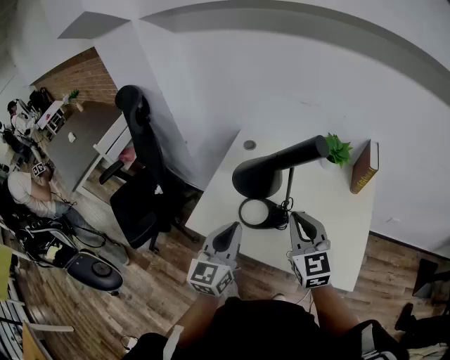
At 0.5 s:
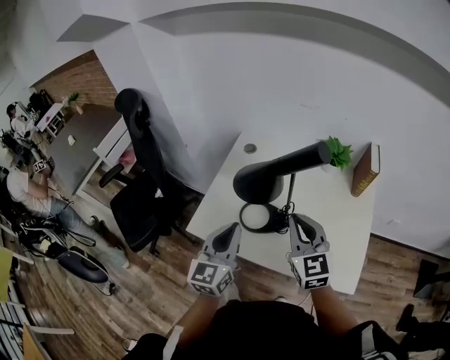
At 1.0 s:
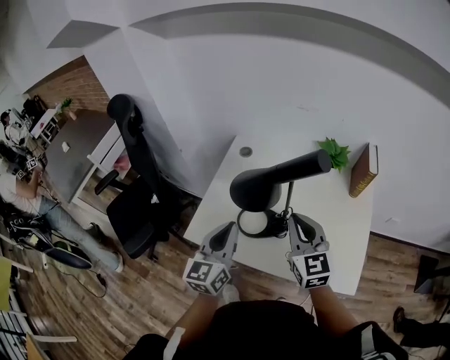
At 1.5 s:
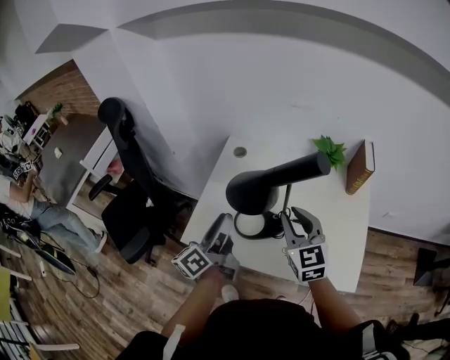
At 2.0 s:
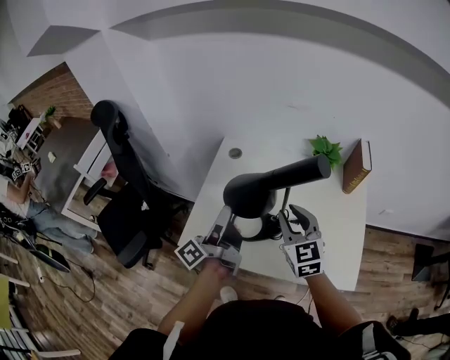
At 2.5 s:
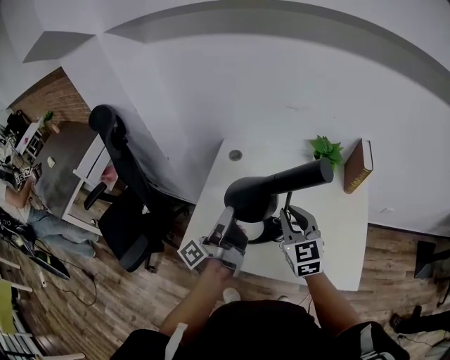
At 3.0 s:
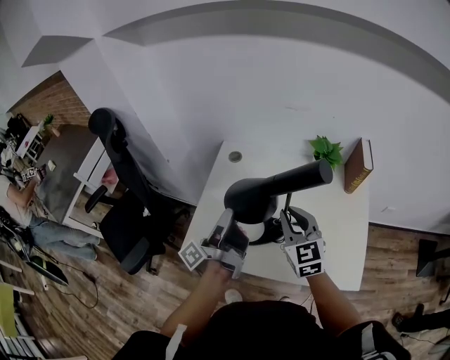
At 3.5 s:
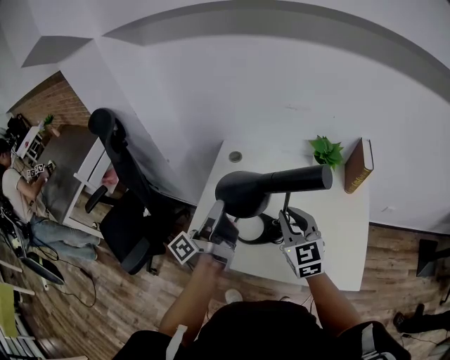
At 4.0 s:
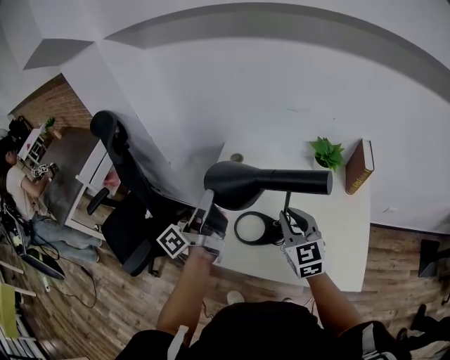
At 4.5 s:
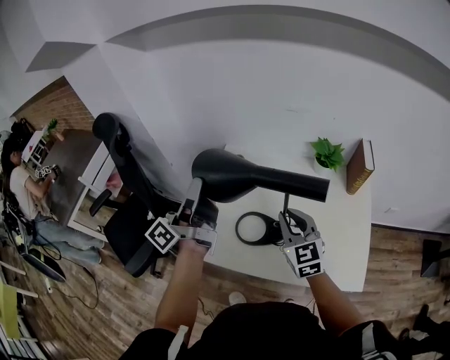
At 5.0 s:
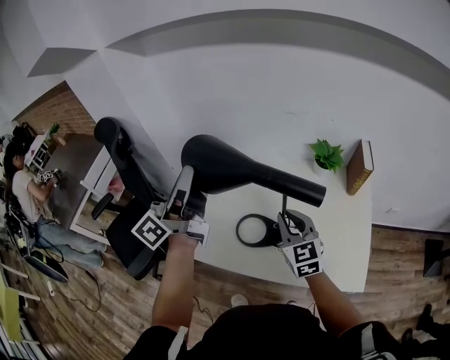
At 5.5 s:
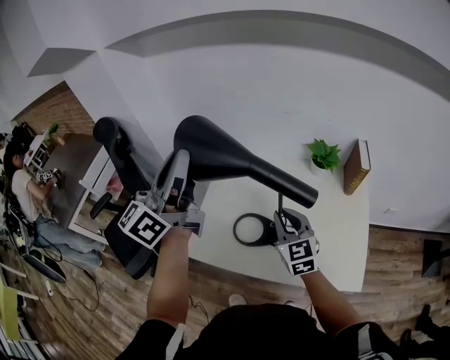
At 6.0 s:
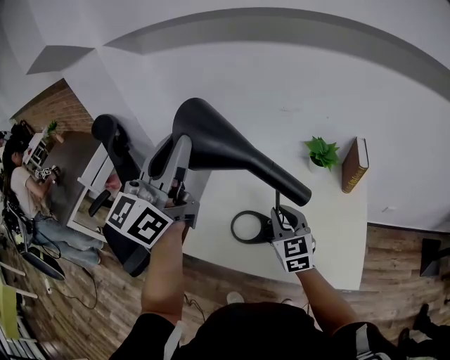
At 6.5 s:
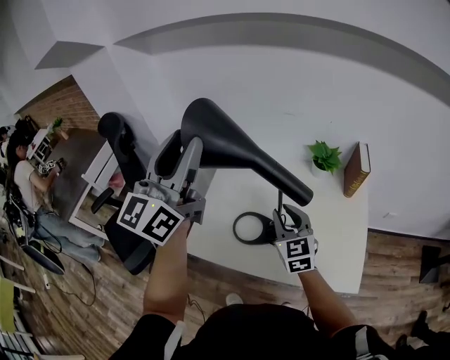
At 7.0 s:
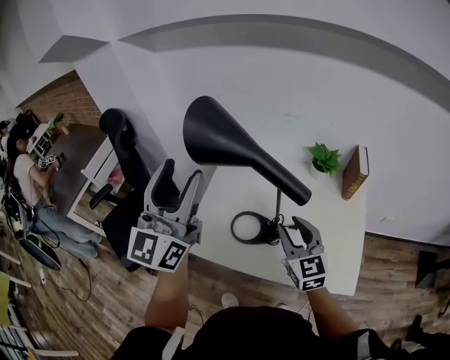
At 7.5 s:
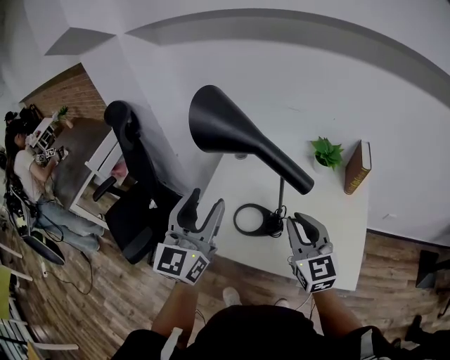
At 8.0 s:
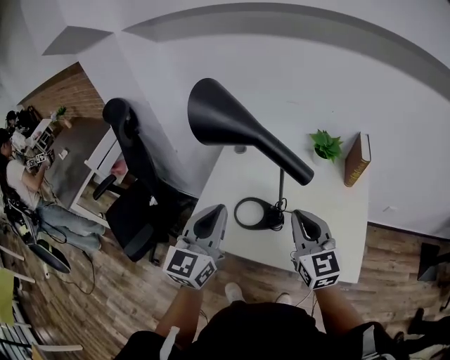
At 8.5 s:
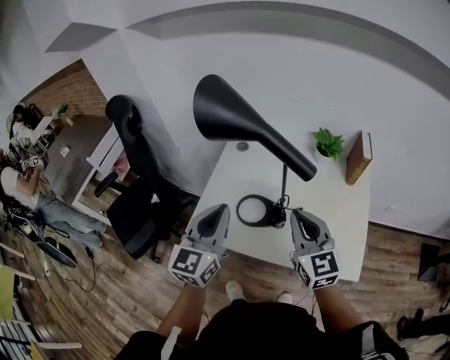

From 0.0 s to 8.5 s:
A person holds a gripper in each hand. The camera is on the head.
From 0.0 s to 2.0 s: The left gripper shifts some 10 cm forward, rolls counterclockwise, seen from behind, by about 70 degrees, and opens, while the right gripper heads forward, covering roughly 5 cm, and opens.
From 2.0 s to 4.0 s: The left gripper shifts approximately 5 cm upward, and closes.
From 4.0 s to 6.5 s: The left gripper is displaced upward by approximately 20 cm, twists about 70 degrees clockwise, seen from behind, and opens.
From 6.5 s to 8.5 s: The right gripper shifts approximately 10 cm backward and upward. The left gripper moves downward and backward, approximately 25 cm, changes its angle by about 20 degrees, and closes its fingers.

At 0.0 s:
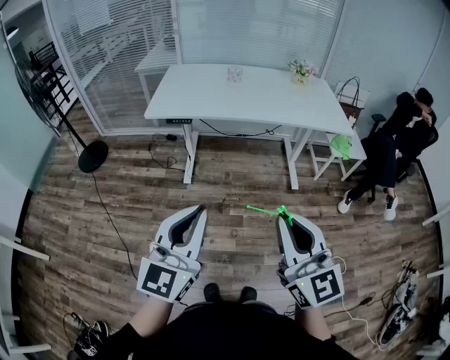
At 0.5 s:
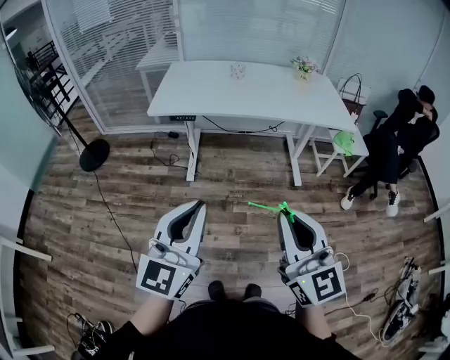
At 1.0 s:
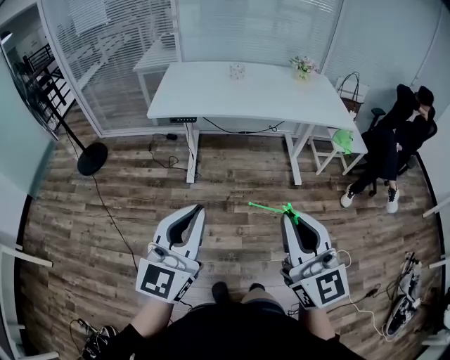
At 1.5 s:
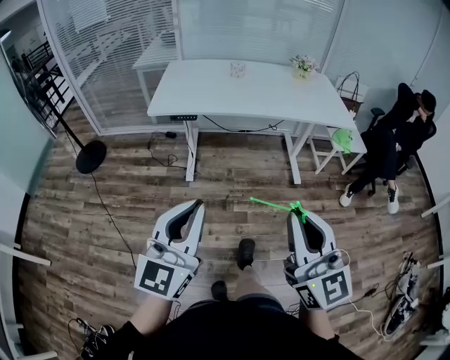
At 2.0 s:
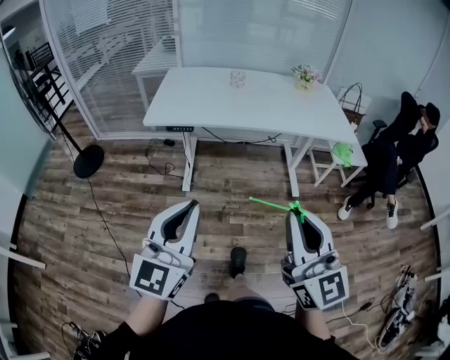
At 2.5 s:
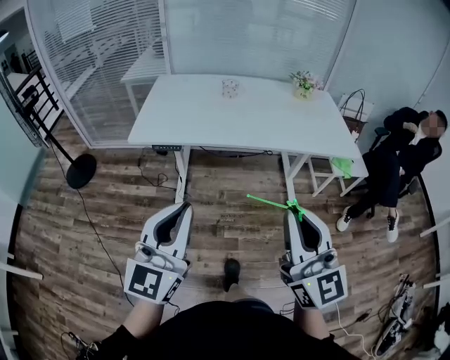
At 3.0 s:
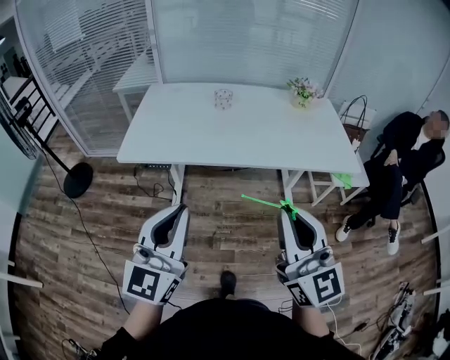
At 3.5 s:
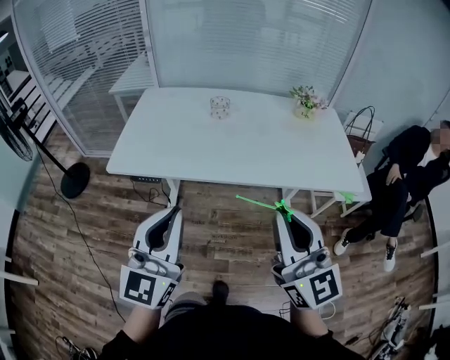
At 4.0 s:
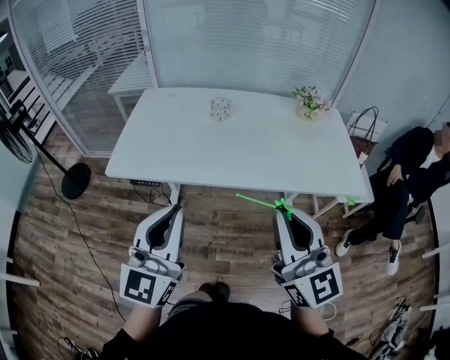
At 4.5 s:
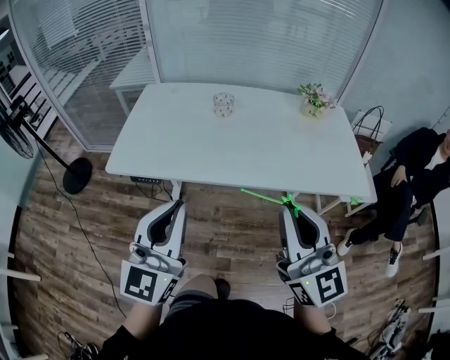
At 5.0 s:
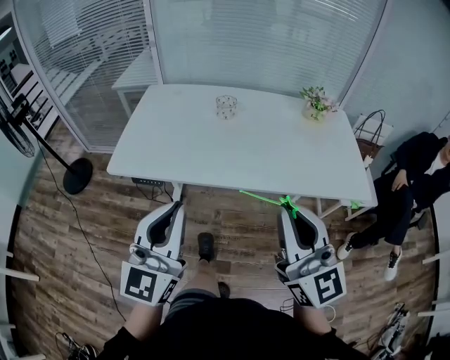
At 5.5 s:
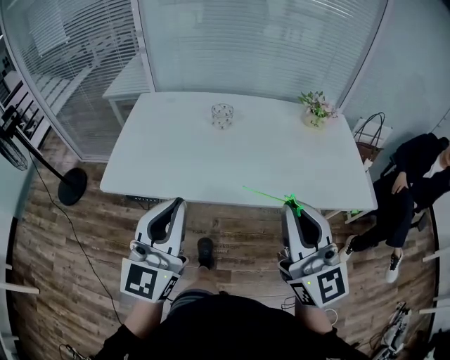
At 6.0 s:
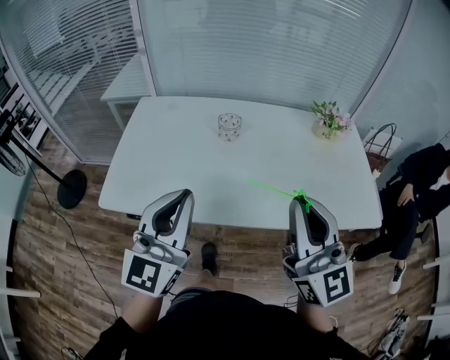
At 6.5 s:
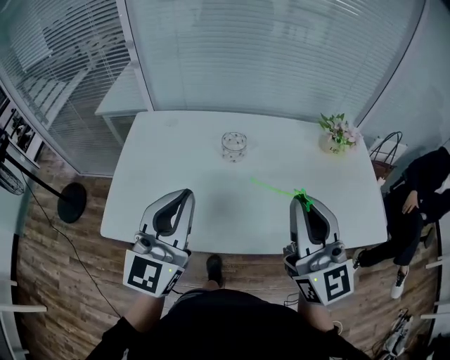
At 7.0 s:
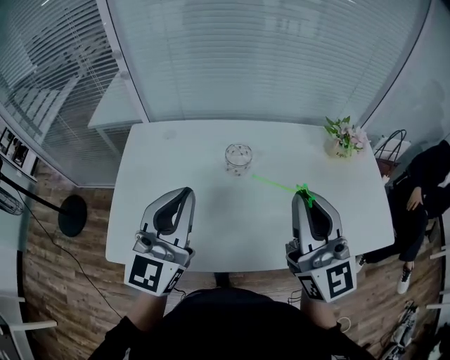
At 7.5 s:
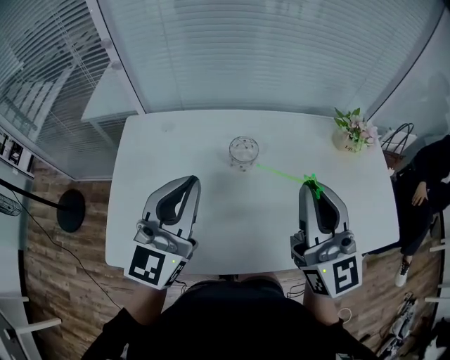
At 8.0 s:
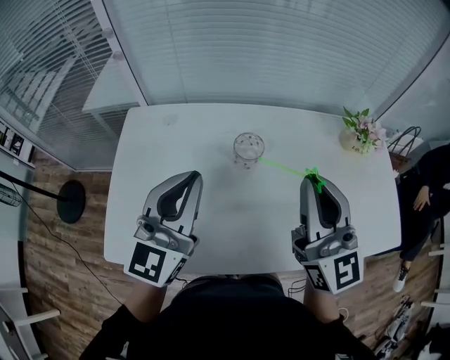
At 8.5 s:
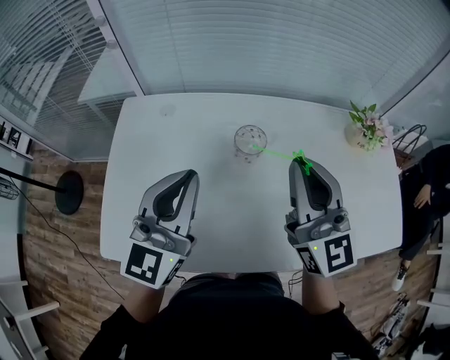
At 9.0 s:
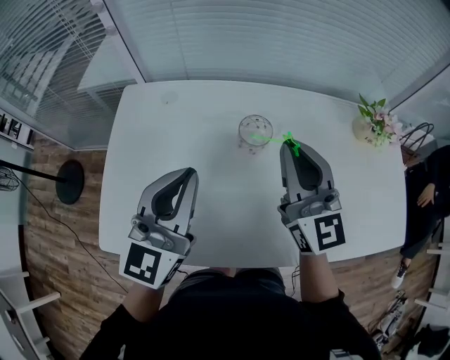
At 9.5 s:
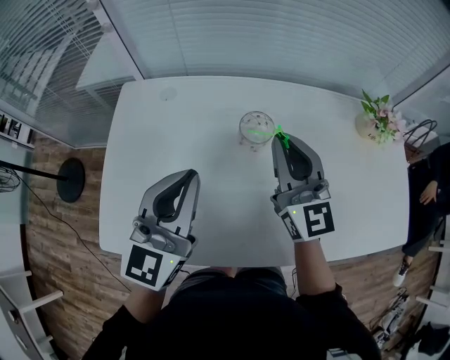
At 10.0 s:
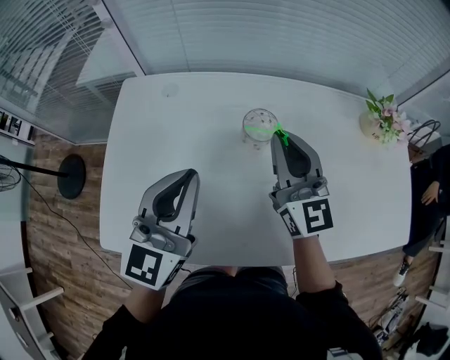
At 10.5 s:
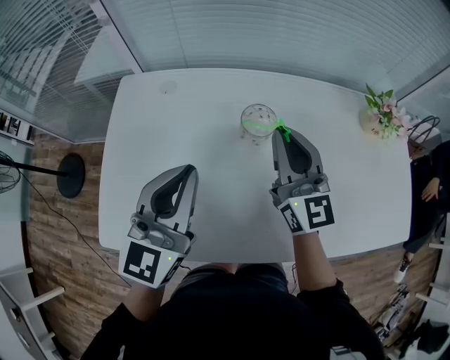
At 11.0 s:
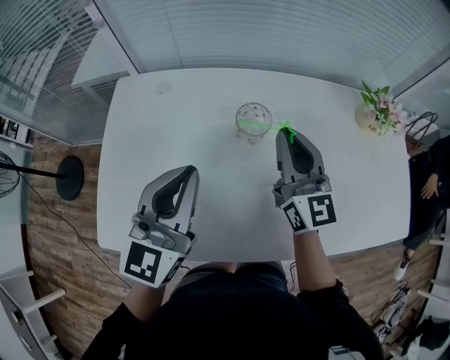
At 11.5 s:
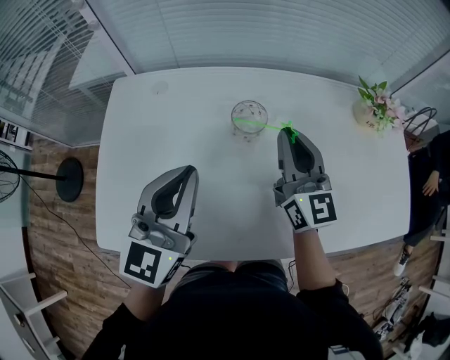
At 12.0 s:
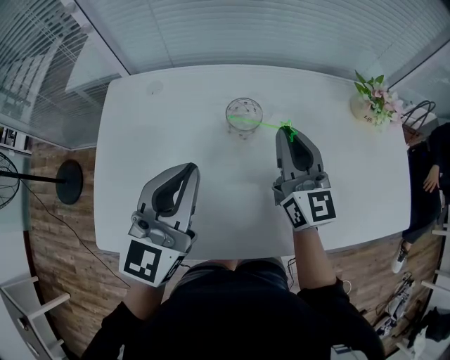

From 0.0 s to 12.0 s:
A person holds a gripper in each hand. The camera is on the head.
From 0.0 s to 2.0 s: The two grippers go about 5 cm forward.
From 2.0 s to 4.0 s: The grippers both shift forward by some 30 cm.
From 4.0 s to 6.0 s: The grippers both shift forward by roughly 15 cm.
From 6.0 s to 8.0 s: Both grippers travel together forward, roughly 20 cm.
From 8.0 s to 10.0 s: The left gripper heads downward, covering about 5 cm. Meanwhile the right gripper is displaced downward, forward and to the left by some 15 cm.
From 10.0 s to 12.0 s: The right gripper goes roughly 5 cm to the right.

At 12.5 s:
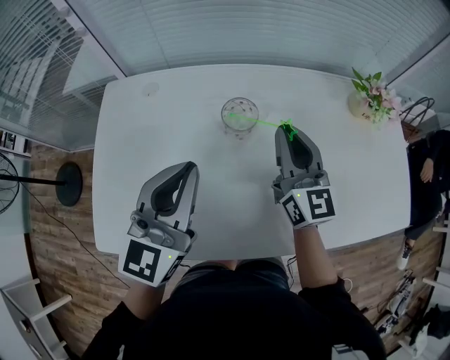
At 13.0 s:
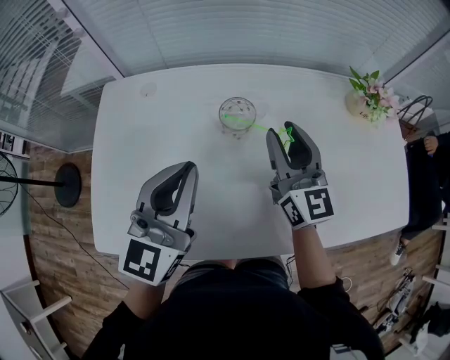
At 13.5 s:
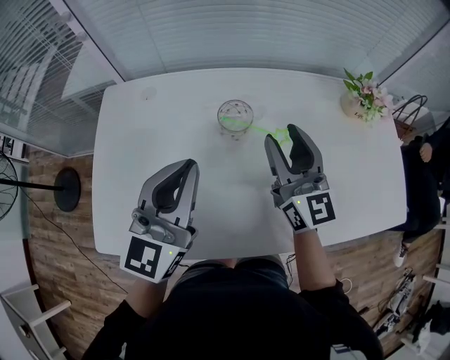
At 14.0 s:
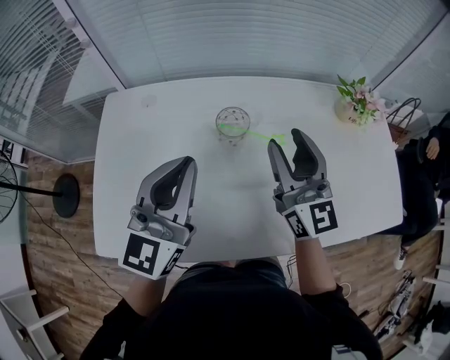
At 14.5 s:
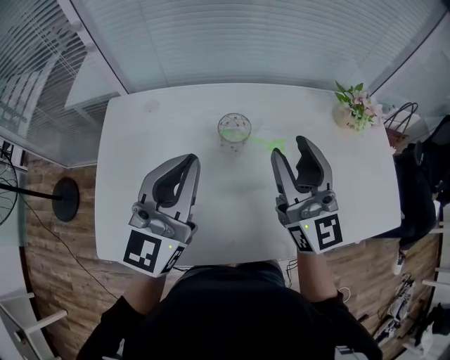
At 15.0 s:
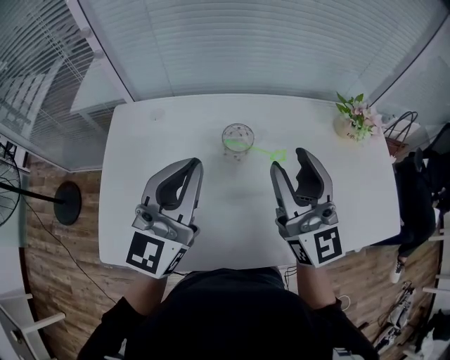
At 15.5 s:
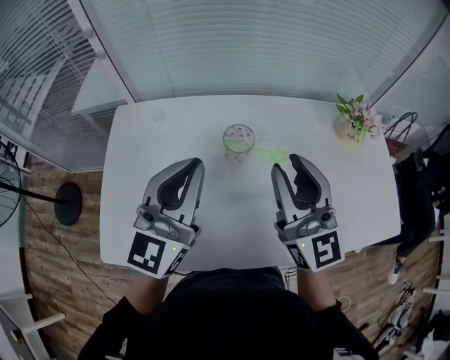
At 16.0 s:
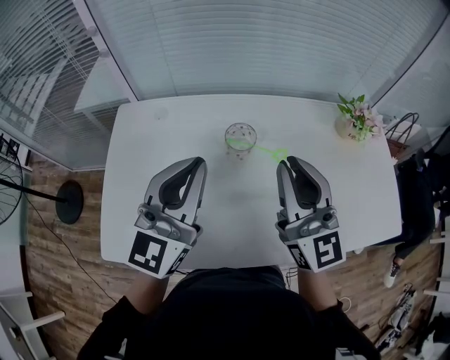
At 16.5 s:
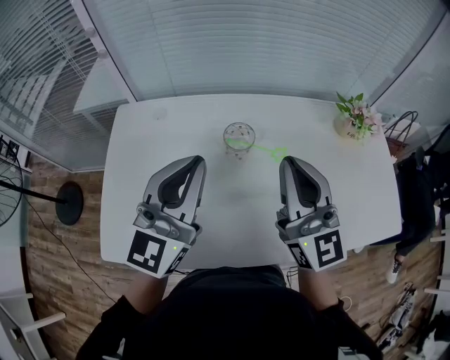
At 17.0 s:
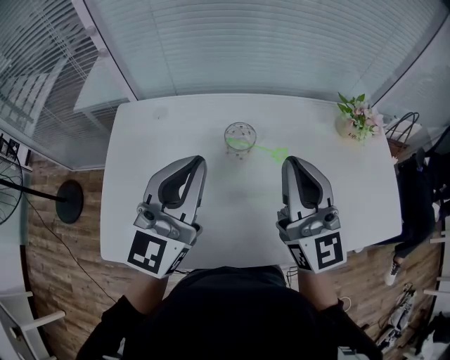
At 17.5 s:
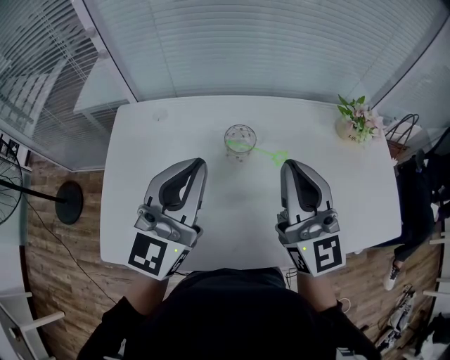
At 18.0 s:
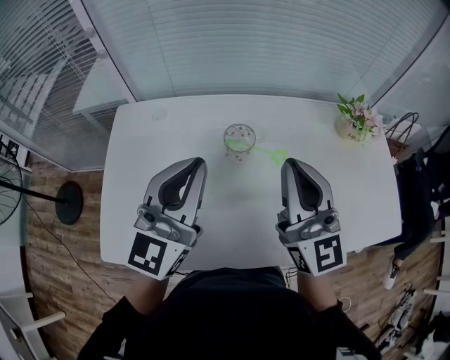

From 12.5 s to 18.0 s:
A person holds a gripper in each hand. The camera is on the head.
From 12.5 s to 14.5 s: The right gripper moves upward and backward, approximately 10 cm, and opens its fingers.
From 14.5 s to 16.0 s: The right gripper closes.
From 16.0 s to 18.0 s: Both grippers stay put.

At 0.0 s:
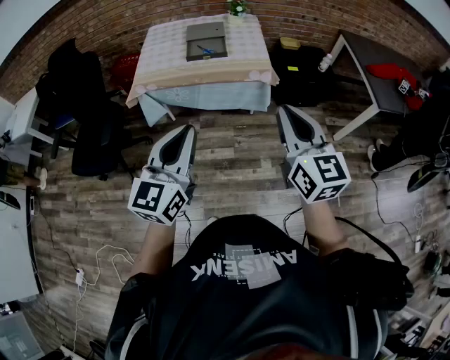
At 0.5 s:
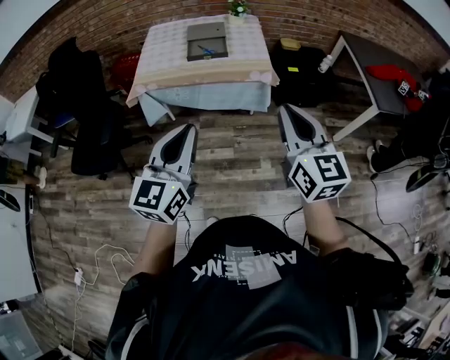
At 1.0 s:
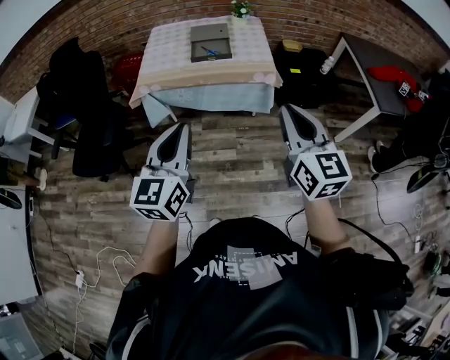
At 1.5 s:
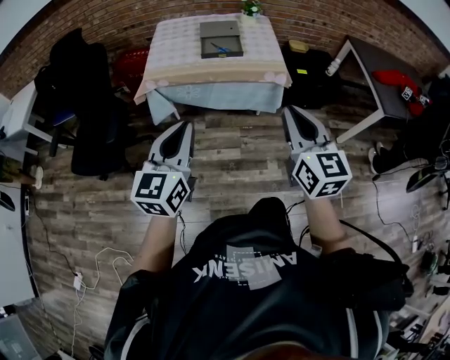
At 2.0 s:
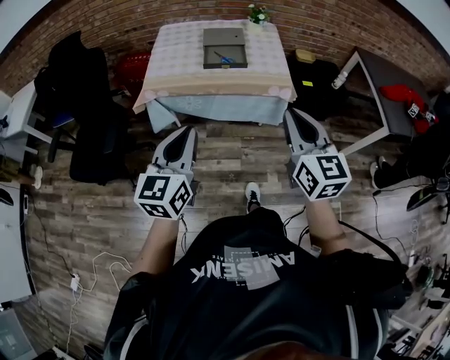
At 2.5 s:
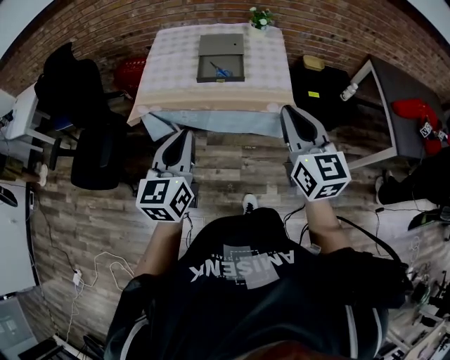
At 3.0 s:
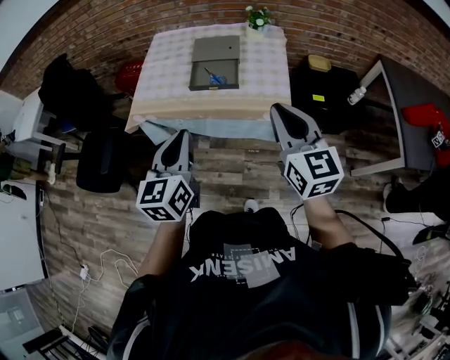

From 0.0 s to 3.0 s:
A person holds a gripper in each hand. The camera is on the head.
From 0.0 s to 1.5 s: Both grippers travel together to the left, approximately 10 cm.
From 1.5 s to 3.0 s: The two grippers go some 35 cm forward and to the right.
